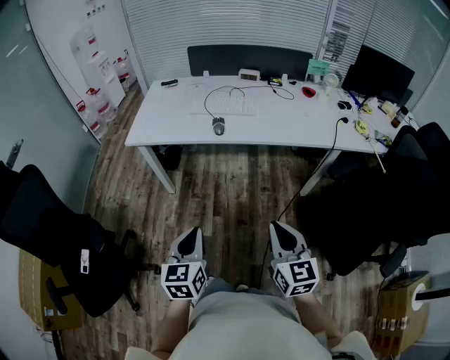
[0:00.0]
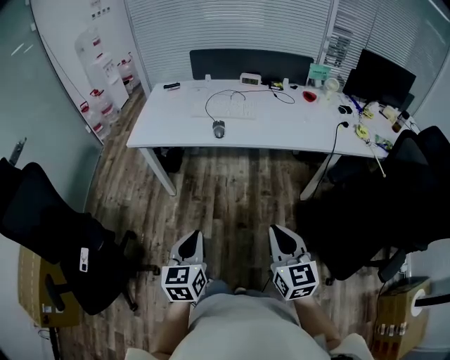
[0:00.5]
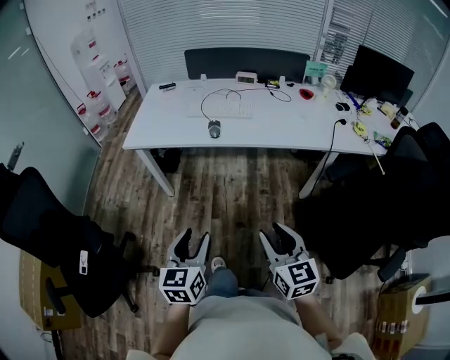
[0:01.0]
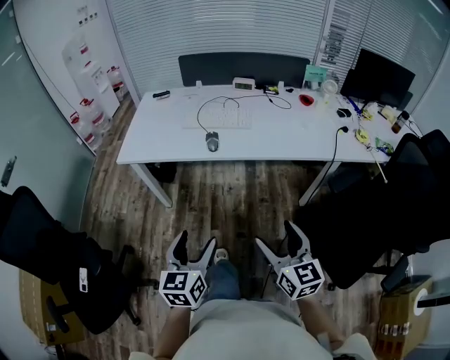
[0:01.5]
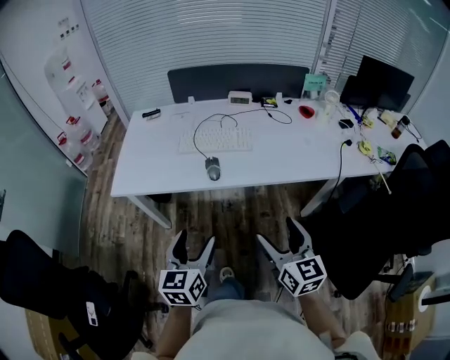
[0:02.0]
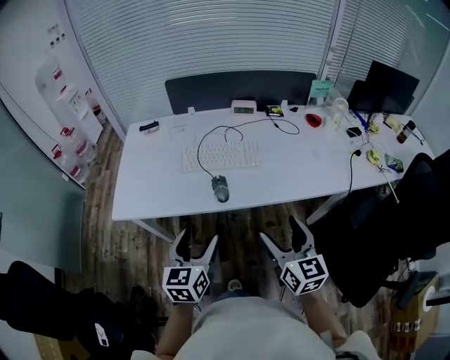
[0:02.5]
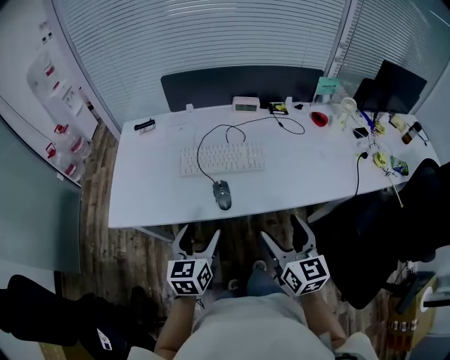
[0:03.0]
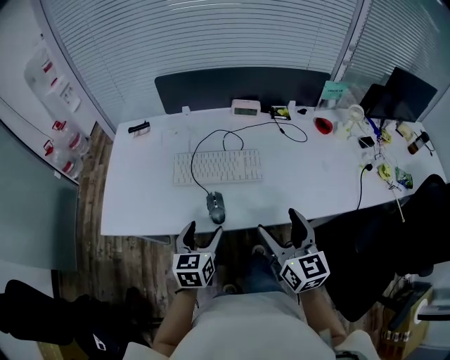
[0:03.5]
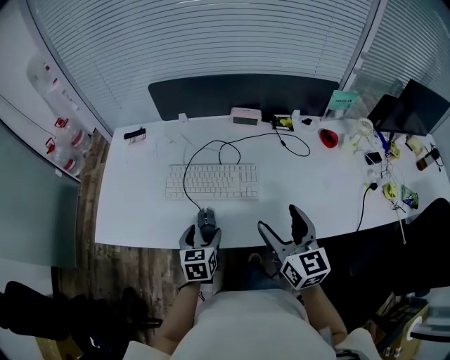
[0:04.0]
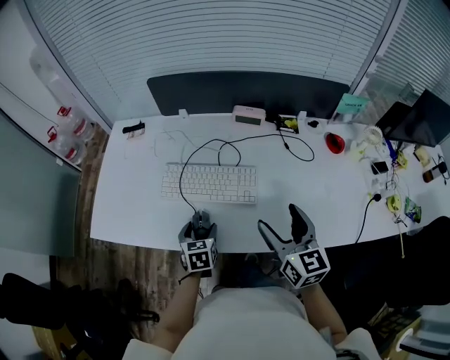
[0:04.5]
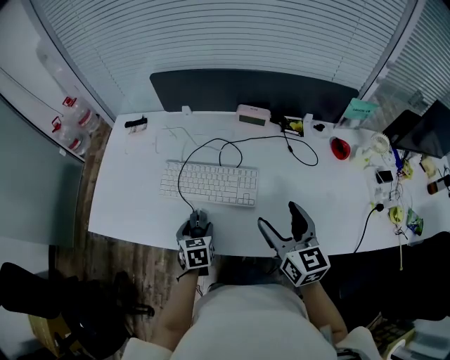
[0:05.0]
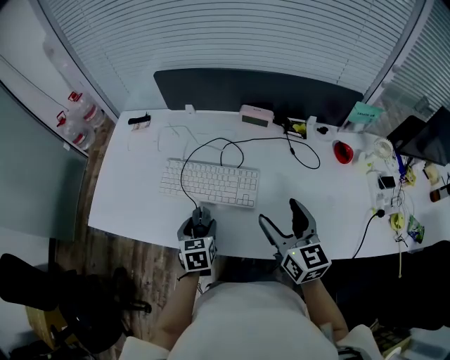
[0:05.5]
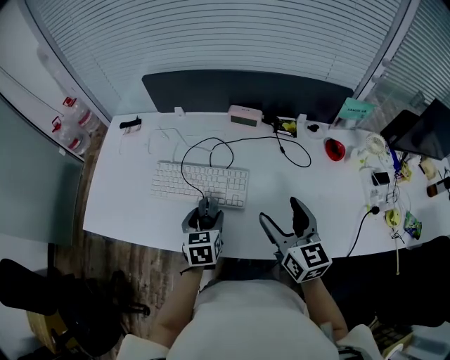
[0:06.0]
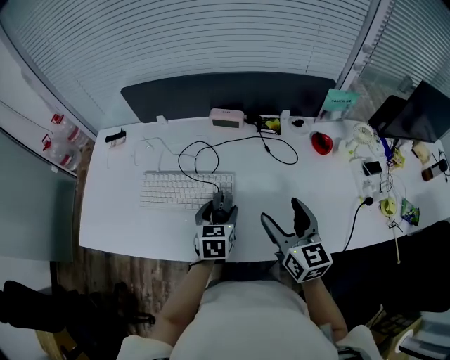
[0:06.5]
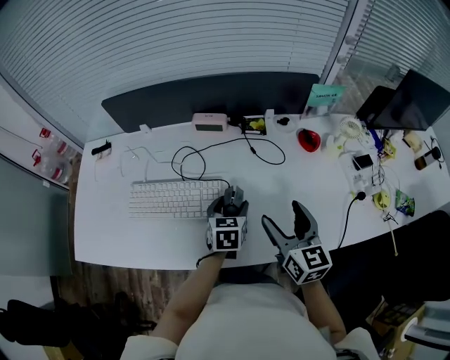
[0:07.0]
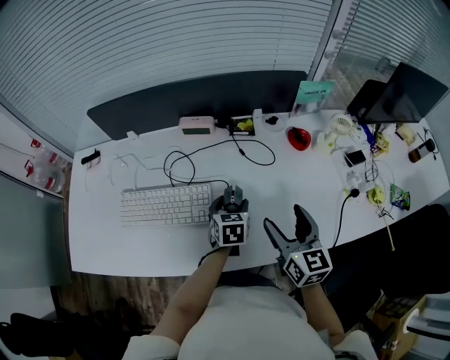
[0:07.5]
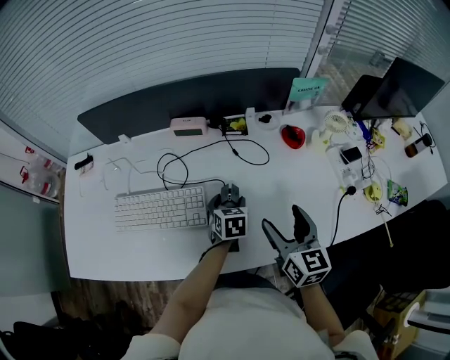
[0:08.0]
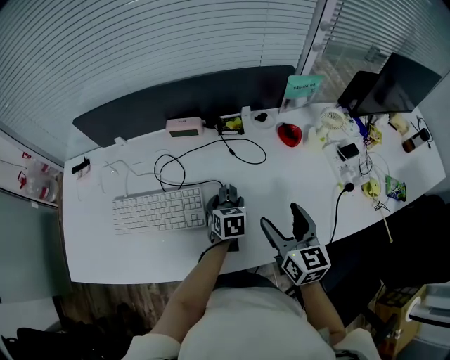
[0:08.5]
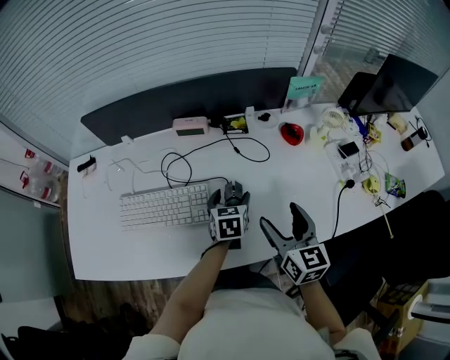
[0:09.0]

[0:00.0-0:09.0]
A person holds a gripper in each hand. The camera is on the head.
0:00.0 to 0:02.0: The two grippers go roughly 20 cm forward. The left gripper opens up, while the right gripper opens.
0:02.0 to 0:04.5: The left gripper travels forward and downward by some 40 cm, and swivels approximately 30 degrees; the right gripper heads forward, covering about 35 cm.
0:04.5 to 0:07.0: The right gripper shifts approximately 15 cm to the right, while the left gripper is displaced to the right by about 25 cm.

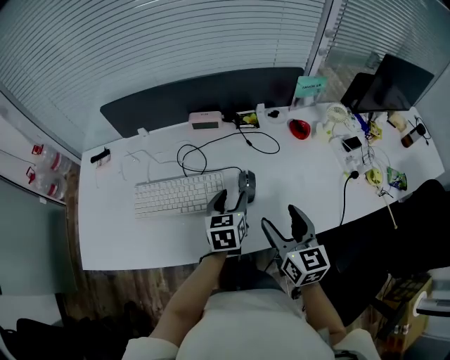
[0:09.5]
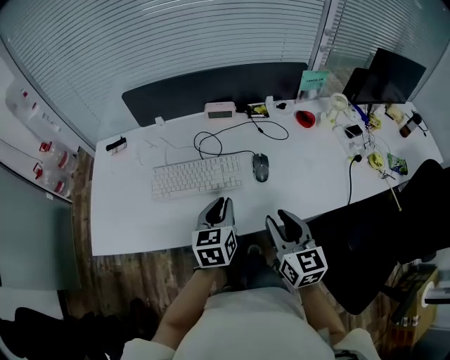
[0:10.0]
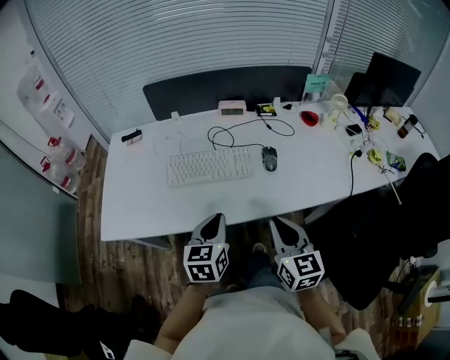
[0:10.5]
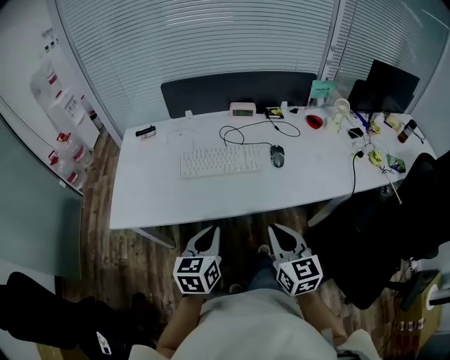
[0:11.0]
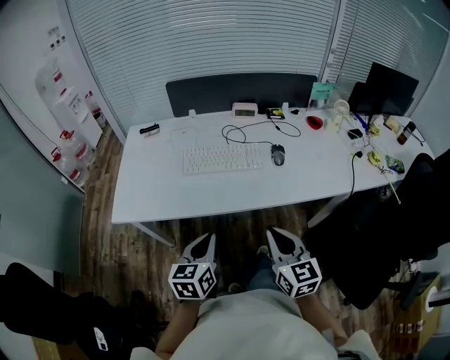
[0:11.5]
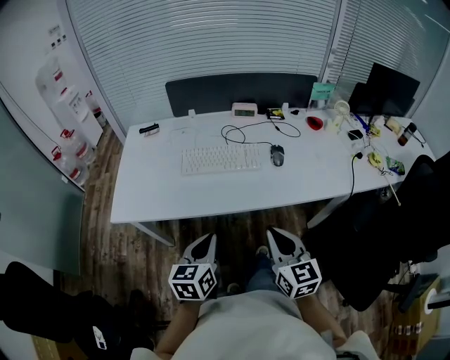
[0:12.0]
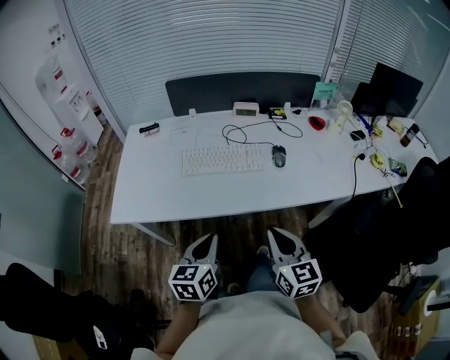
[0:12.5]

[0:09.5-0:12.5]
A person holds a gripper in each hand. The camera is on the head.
0:09.5 to 0:11.0: Both grippers move backward and to the left, about 35 cm. The right gripper closes its fingers; the left gripper closes.
0:11.0 to 0:12.5: The grippers make only small movements.

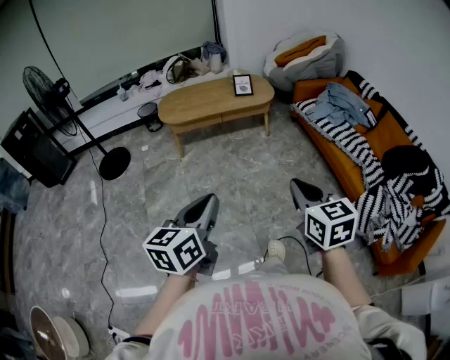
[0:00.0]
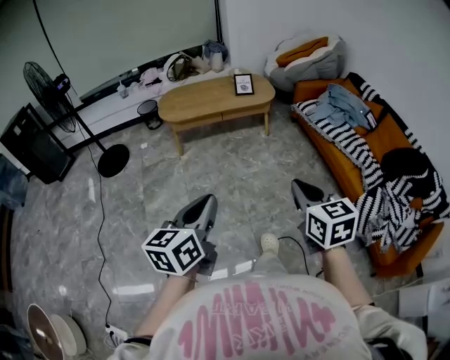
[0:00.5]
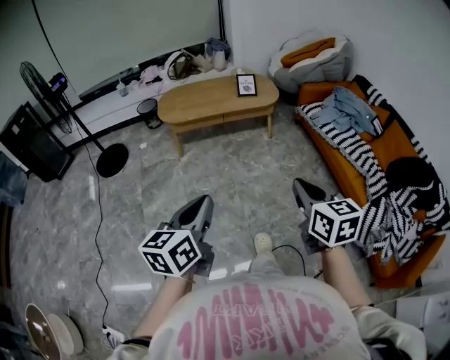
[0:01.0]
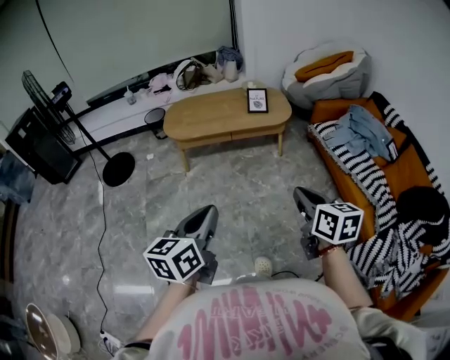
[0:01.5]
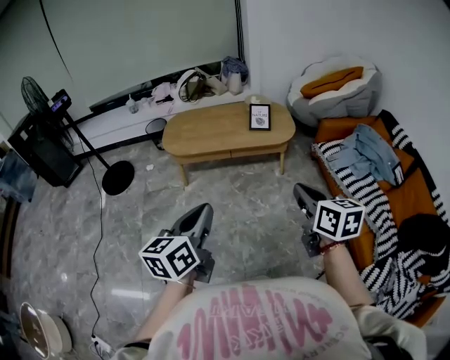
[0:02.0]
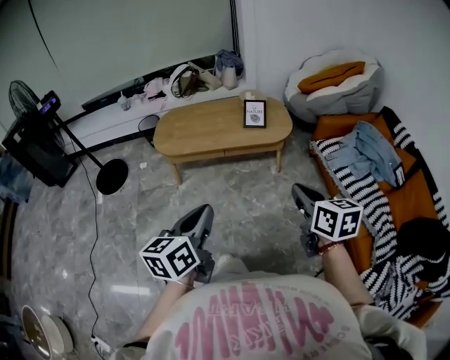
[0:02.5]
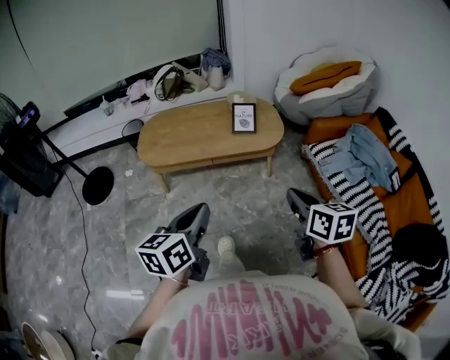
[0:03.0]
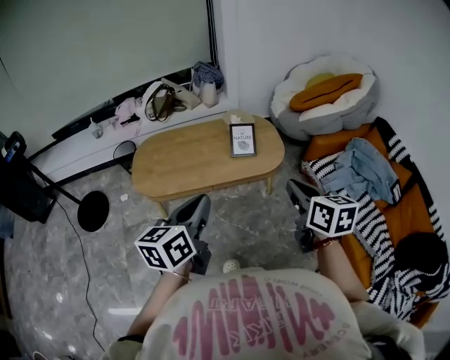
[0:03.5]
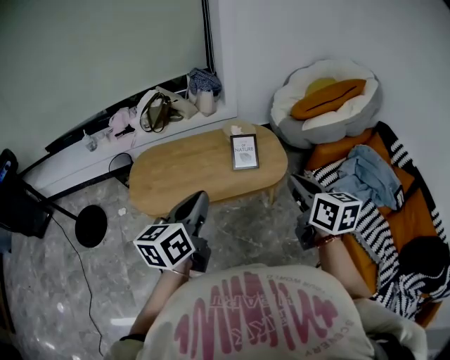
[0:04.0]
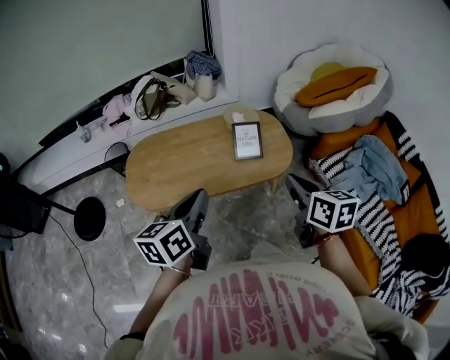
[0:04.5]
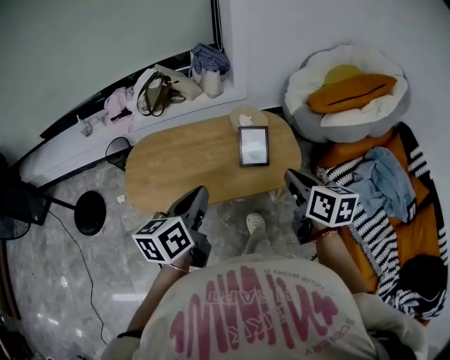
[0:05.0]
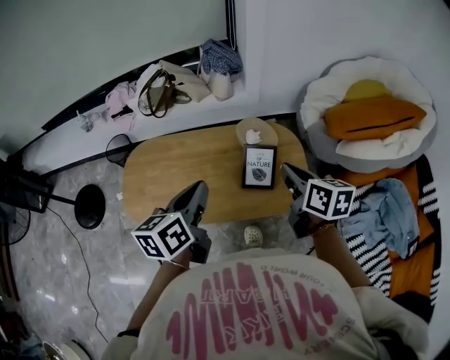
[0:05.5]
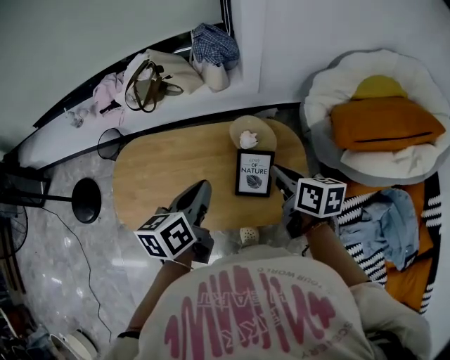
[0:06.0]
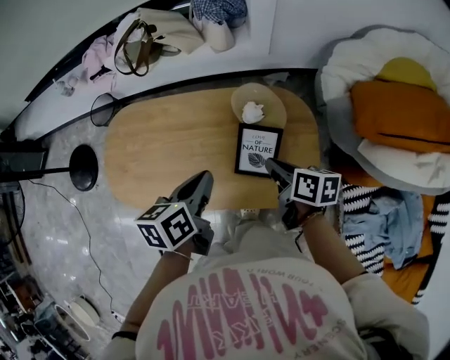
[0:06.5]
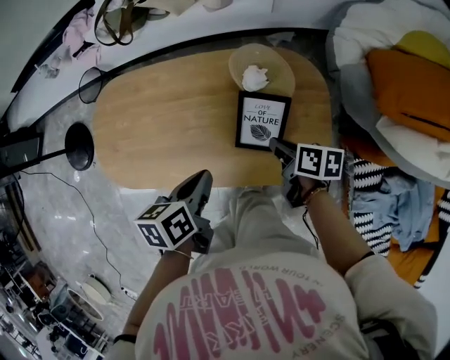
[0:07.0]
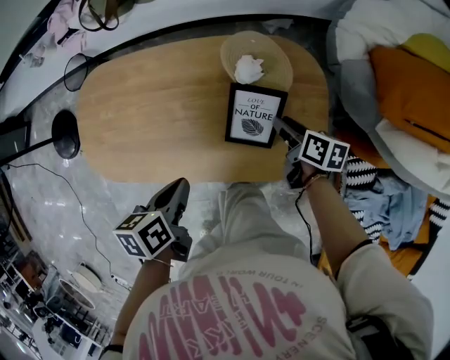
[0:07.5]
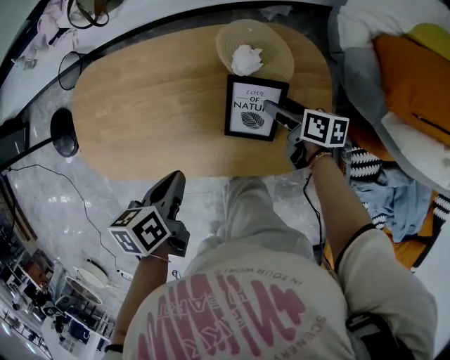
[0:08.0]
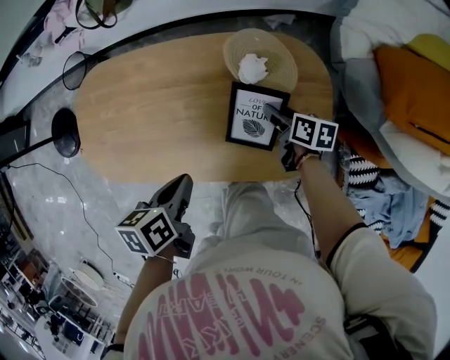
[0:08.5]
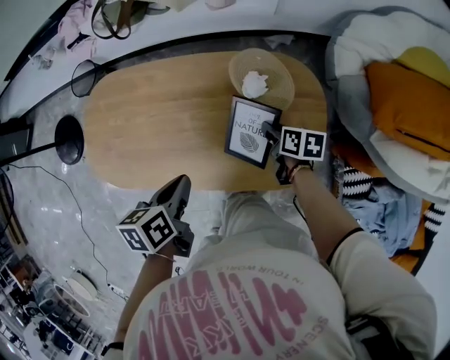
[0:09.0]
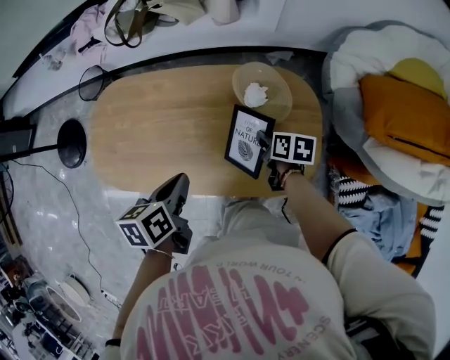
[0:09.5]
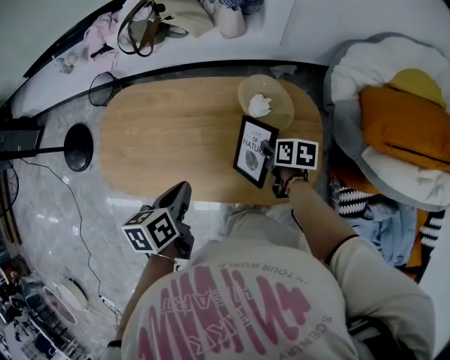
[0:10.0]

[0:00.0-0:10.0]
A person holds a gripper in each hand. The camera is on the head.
0:00.0 to 0:02.0: Both grippers travel together forward, some 30 cm.
0:02.0 to 0:04.0: Both grippers travel together forward, roughly 40 cm.
0:04.0 to 0:06.0: The right gripper goes about 40 cm forward and downward, and changes its angle by about 30 degrees. Meanwhile the left gripper travels forward by about 35 cm, and changes its angle by about 20 degrees.
0:06.0 to 0:08.0: The grippers both shift downward by some 25 cm. The right gripper rotates some 20 degrees, and opens; the left gripper rotates roughly 30 degrees.
0:08.0 to 0:10.0: The left gripper travels upward by approximately 5 cm, while the right gripper heads upward and to the left, covering roughly 5 cm, and closes.

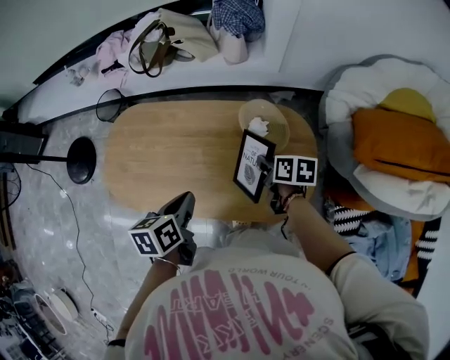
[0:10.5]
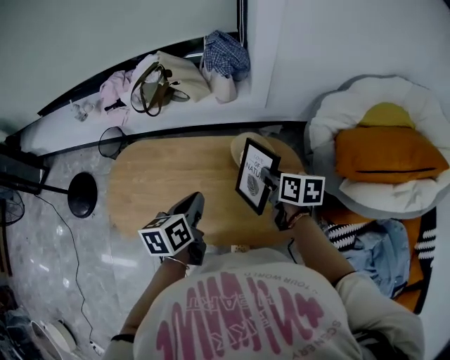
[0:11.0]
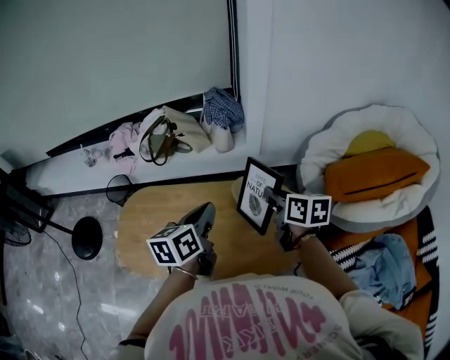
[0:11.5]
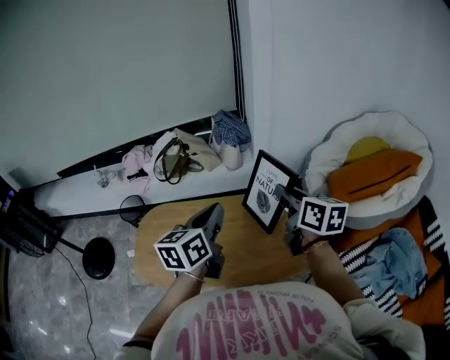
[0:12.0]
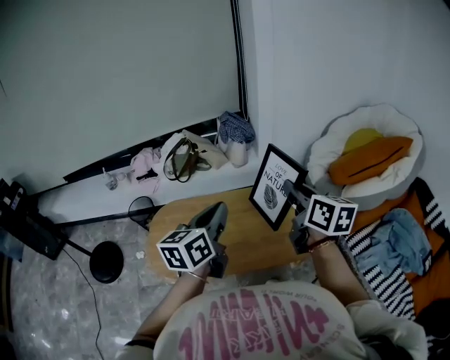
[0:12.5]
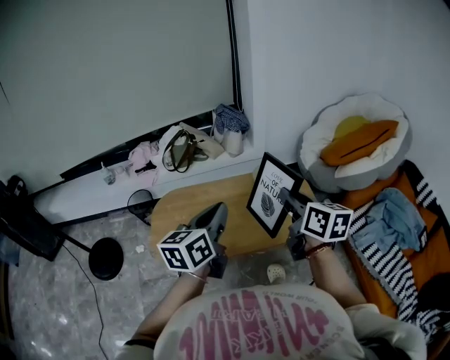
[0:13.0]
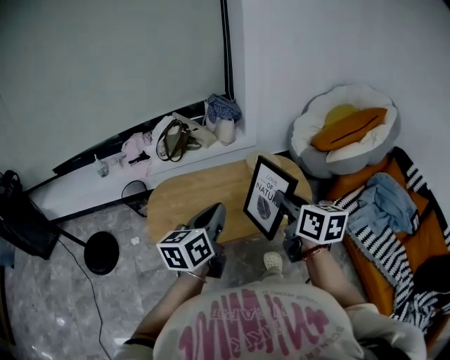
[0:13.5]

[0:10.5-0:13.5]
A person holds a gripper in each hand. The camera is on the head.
0:10.5 to 0:12.0: Both grippers travel together upward, about 30 cm. The left gripper points its fingers some 30 degrees further upward, while the right gripper points its fingers about 30 degrees further upward.
0:12.0 to 0:13.5: Both grippers move backward, some 25 cm.

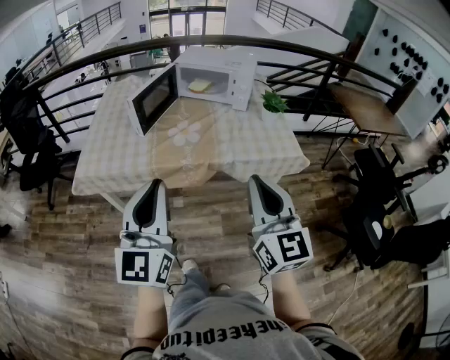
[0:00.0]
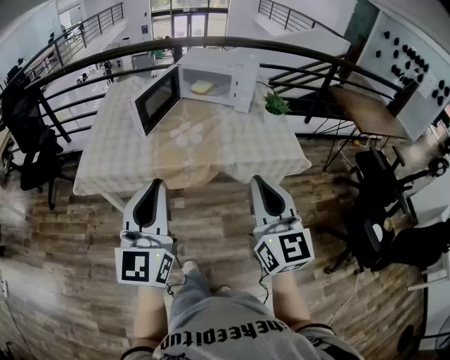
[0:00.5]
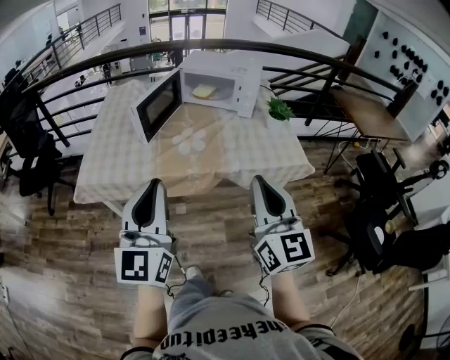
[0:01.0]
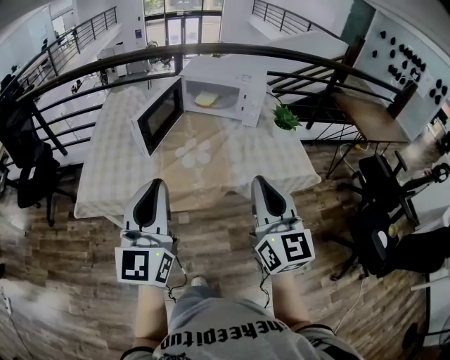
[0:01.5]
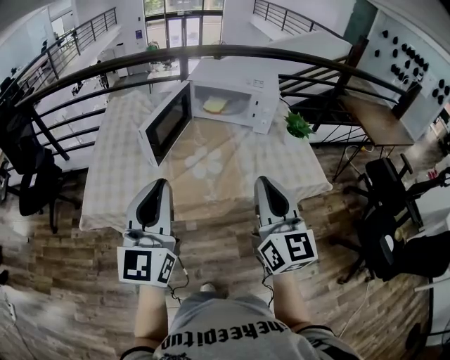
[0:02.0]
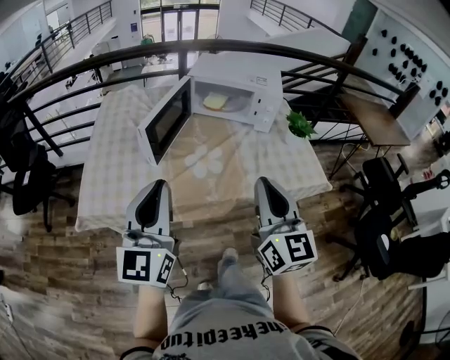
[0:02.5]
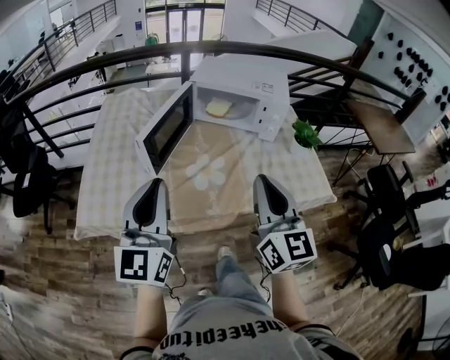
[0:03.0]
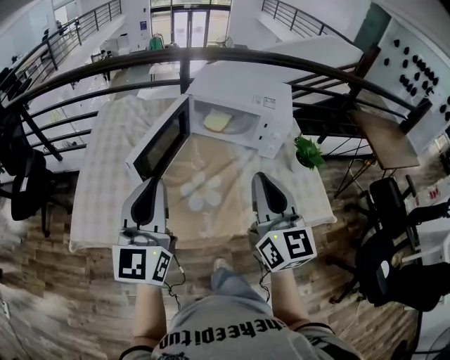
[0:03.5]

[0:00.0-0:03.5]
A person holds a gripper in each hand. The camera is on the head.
0:00.0 to 0:02.0: The two grippers go some 20 cm forward and to the left.
0:02.0 to 0:03.5: The two grippers go approximately 15 cm forward.
